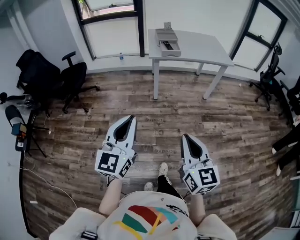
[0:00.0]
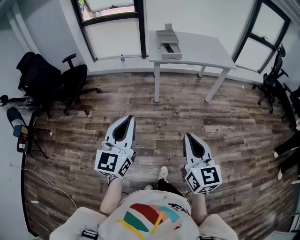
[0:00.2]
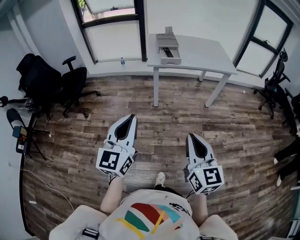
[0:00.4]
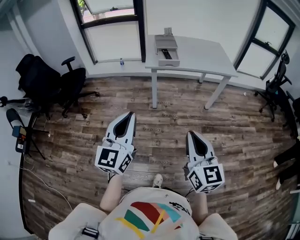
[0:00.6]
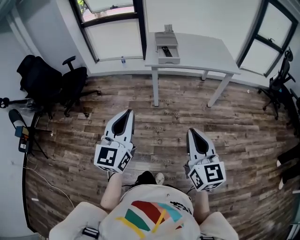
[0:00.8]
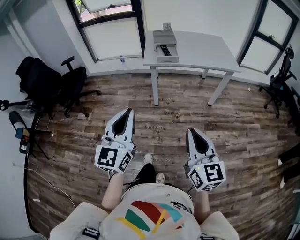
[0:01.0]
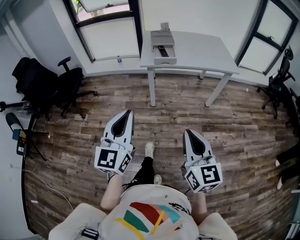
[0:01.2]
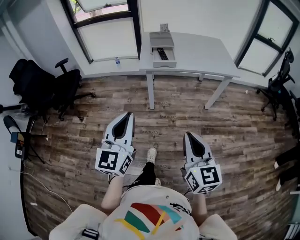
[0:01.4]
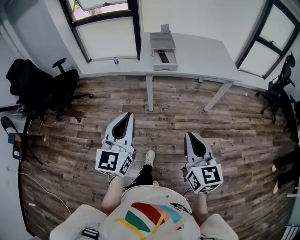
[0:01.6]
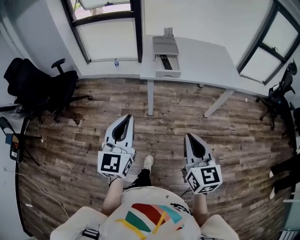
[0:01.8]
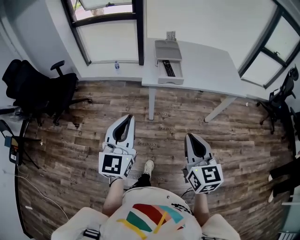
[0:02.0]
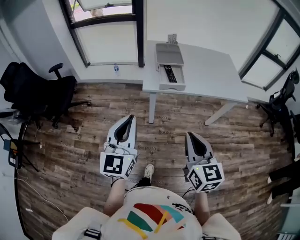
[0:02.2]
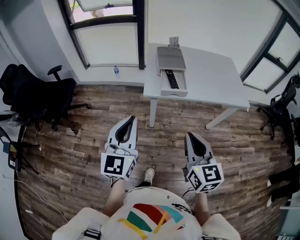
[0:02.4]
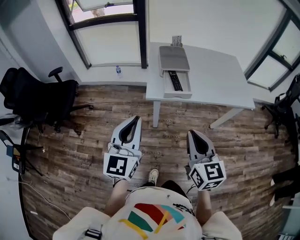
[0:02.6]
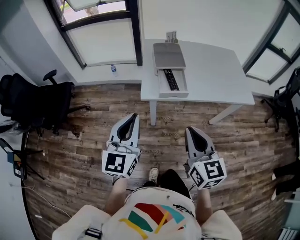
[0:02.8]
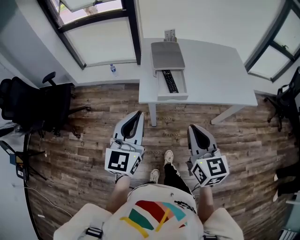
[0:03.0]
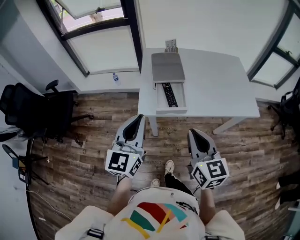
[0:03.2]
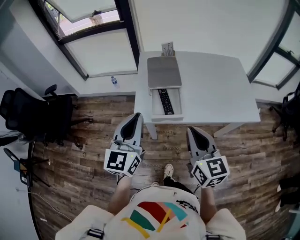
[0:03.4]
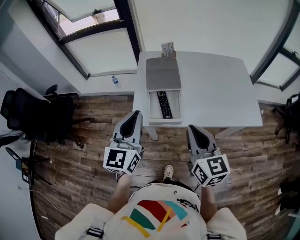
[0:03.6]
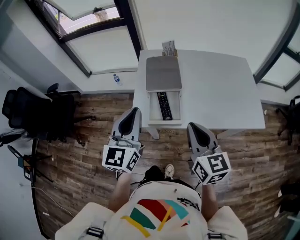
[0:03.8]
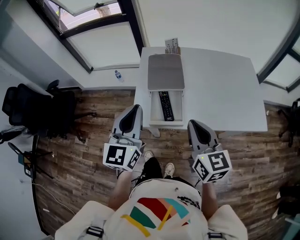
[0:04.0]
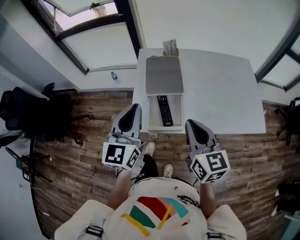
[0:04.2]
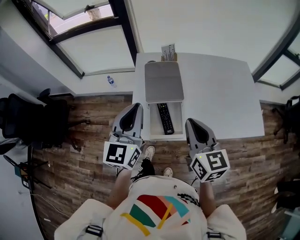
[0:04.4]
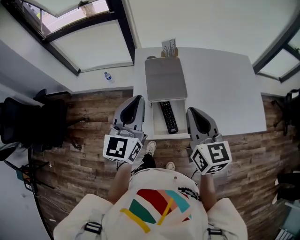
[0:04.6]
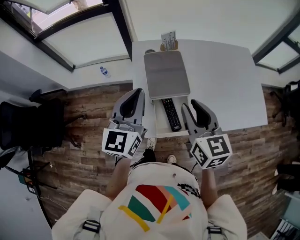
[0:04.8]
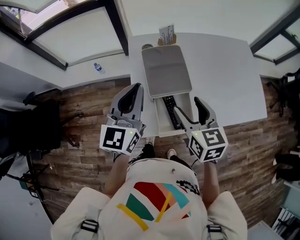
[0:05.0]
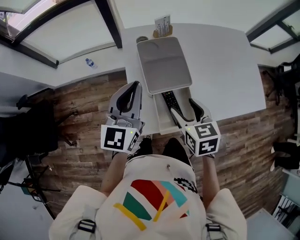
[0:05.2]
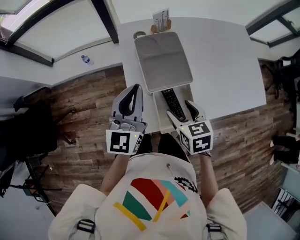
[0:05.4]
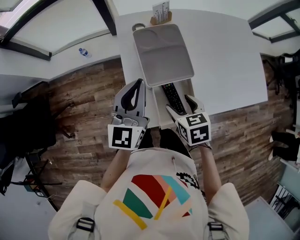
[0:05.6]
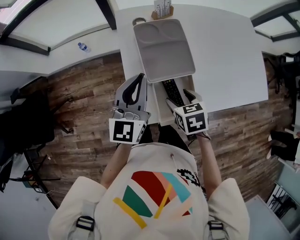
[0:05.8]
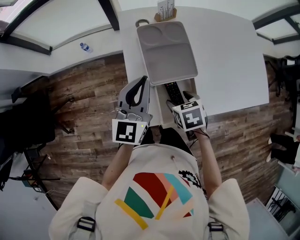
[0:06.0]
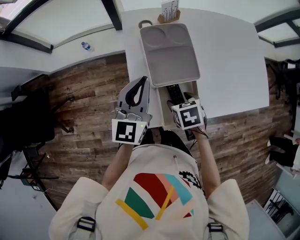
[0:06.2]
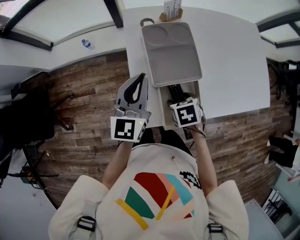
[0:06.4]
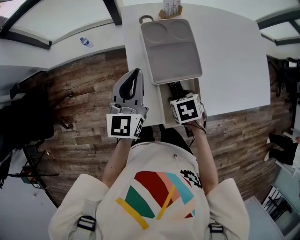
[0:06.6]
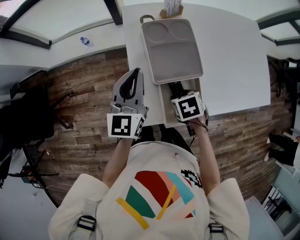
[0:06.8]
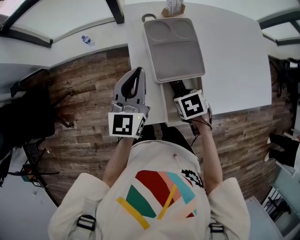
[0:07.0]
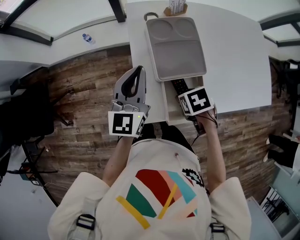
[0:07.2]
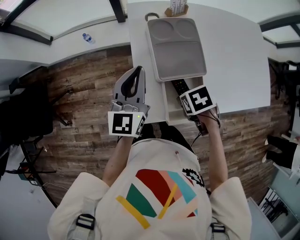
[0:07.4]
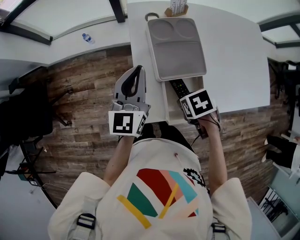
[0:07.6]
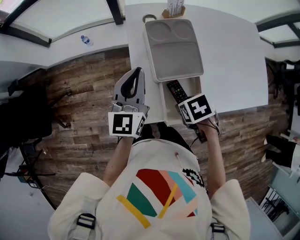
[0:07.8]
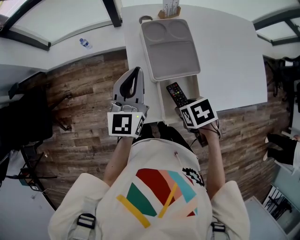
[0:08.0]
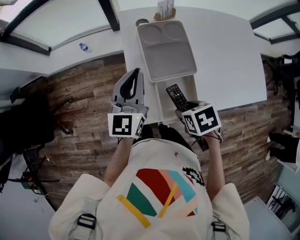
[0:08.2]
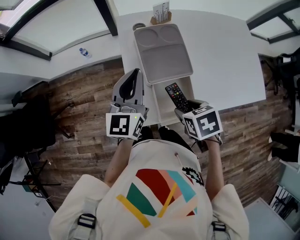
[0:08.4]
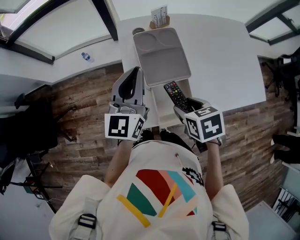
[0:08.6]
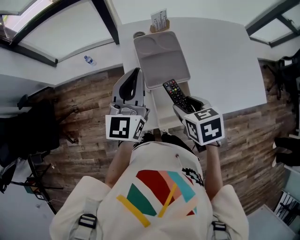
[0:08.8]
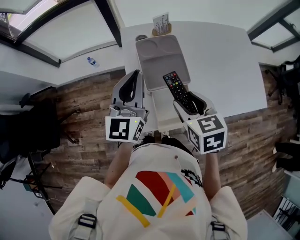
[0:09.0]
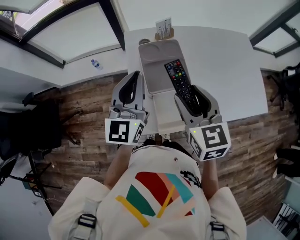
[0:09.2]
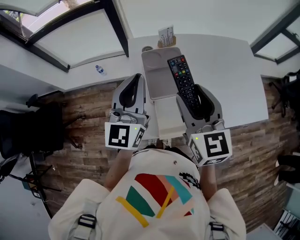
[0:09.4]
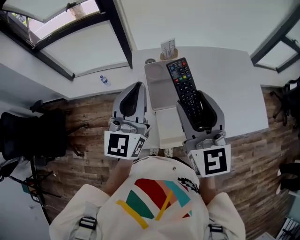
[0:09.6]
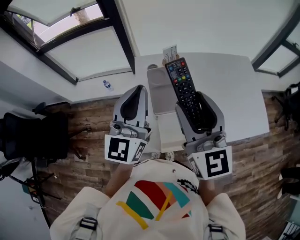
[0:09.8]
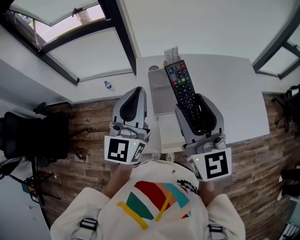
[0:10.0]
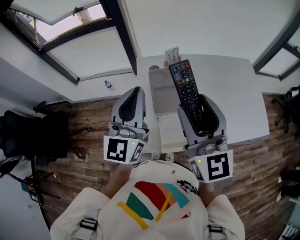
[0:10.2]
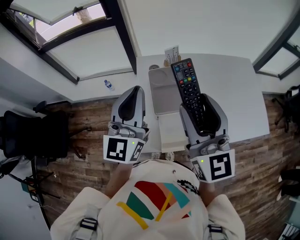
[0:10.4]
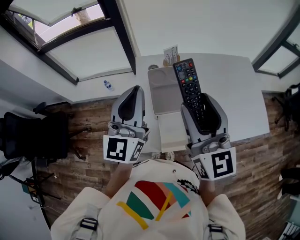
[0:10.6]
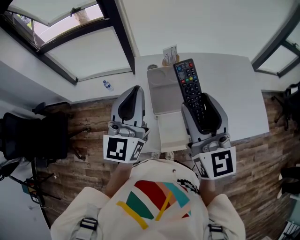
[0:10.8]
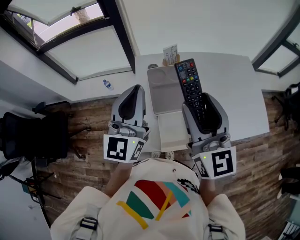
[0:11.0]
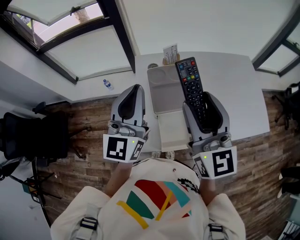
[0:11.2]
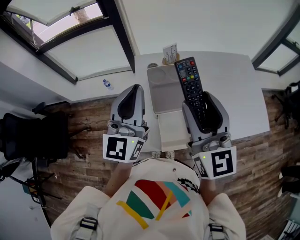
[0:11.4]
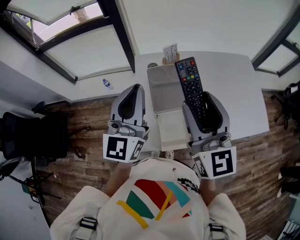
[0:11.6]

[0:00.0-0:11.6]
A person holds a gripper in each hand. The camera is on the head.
0:00.0 to 0:01.4: Both grippers move forward and to the right, some 25 cm.
0:01.4 to 0:02.8: Both grippers travel together forward, roughly 30 cm.
0:02.8 to 0:04.4: The grippers both shift forward by about 30 cm.
0:04.4 to 0:05.8: The left gripper shifts approximately 15 cm forward and downward, while the right gripper shifts about 20 cm downward, tilts its fingers some 50 degrees downward, and opens.
0:05.8 to 0:07.2: The left gripper ends up approximately 5 cm from where it was; the right gripper rotates about 20 degrees.
0:07.2 to 0:08.8: The right gripper moves upward, some 10 cm, and turns by some 30 degrees. The left gripper goes approximately 10 cm upward.
0:08.8 to 0:10.2: The left gripper travels upward by approximately 10 cm. Meanwhile the right gripper is displaced upward by approximately 25 cm, and angles its fingers upward, by roughly 60 degrees.
0:10.2 to 0:11.6: The grippers move only a little.

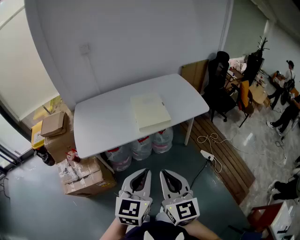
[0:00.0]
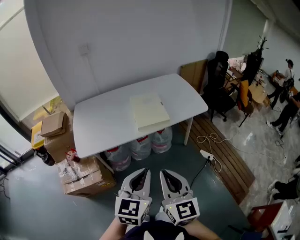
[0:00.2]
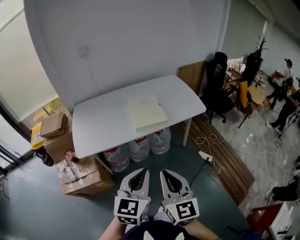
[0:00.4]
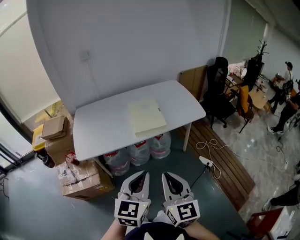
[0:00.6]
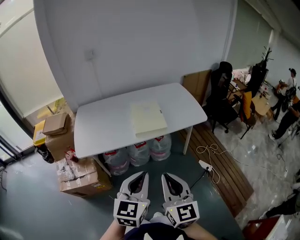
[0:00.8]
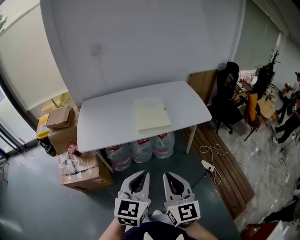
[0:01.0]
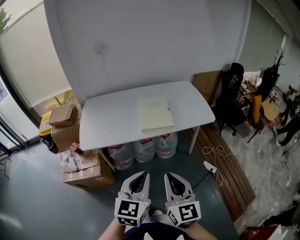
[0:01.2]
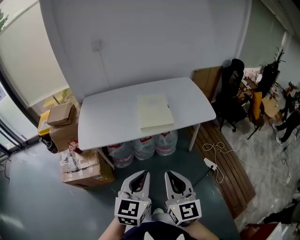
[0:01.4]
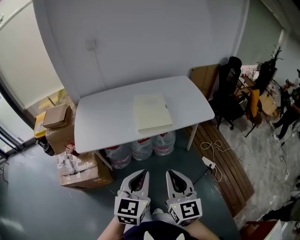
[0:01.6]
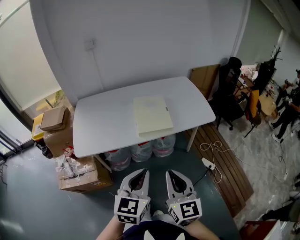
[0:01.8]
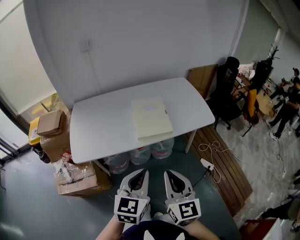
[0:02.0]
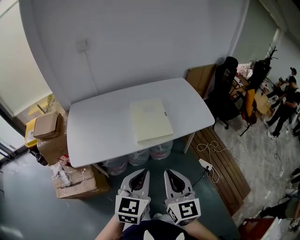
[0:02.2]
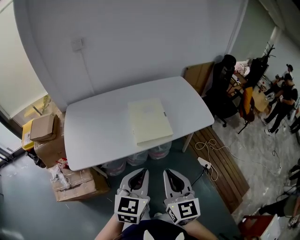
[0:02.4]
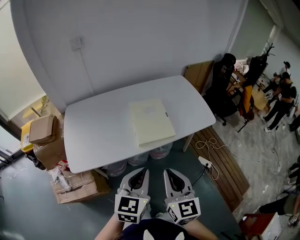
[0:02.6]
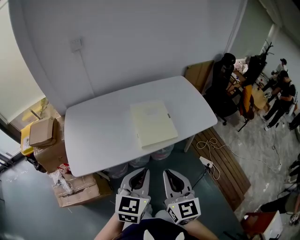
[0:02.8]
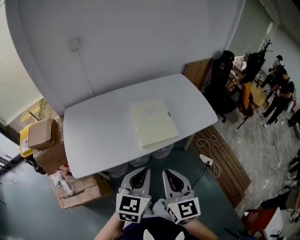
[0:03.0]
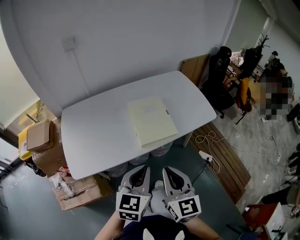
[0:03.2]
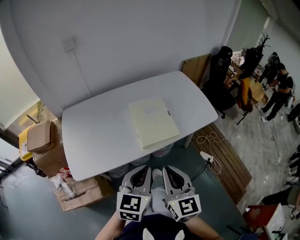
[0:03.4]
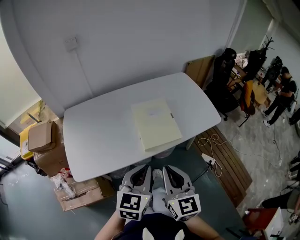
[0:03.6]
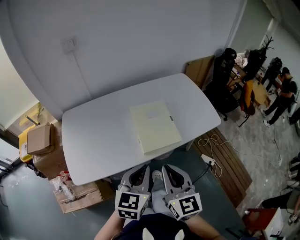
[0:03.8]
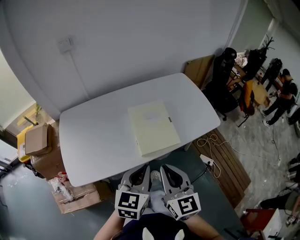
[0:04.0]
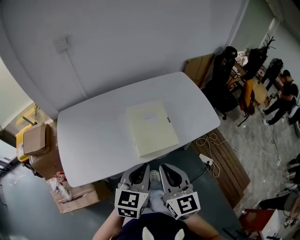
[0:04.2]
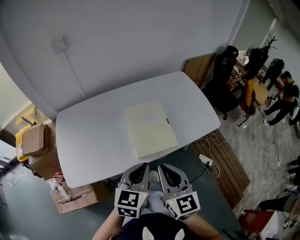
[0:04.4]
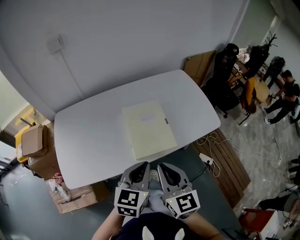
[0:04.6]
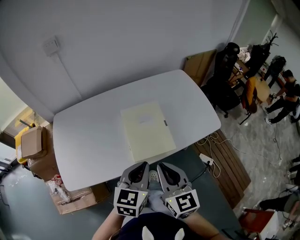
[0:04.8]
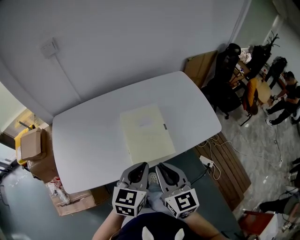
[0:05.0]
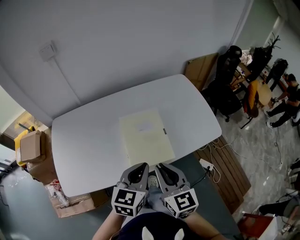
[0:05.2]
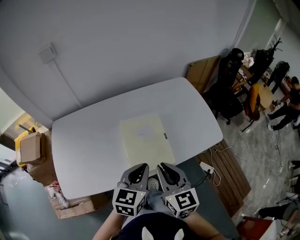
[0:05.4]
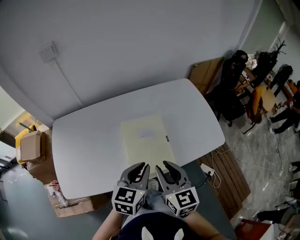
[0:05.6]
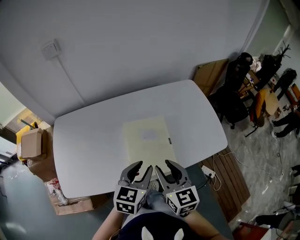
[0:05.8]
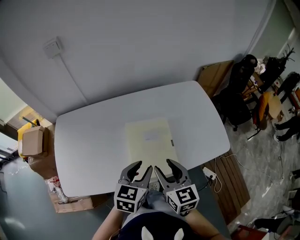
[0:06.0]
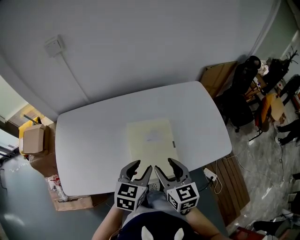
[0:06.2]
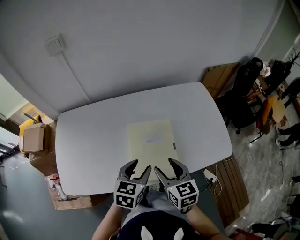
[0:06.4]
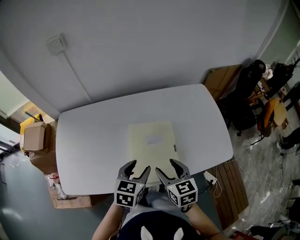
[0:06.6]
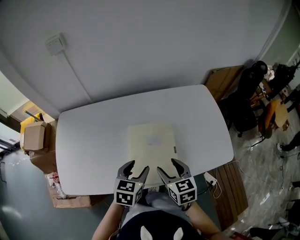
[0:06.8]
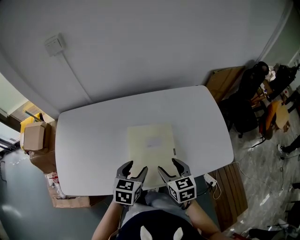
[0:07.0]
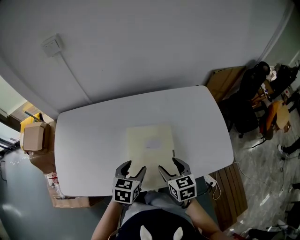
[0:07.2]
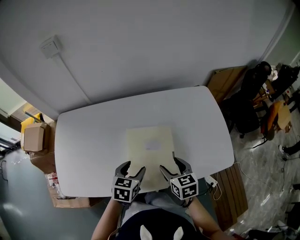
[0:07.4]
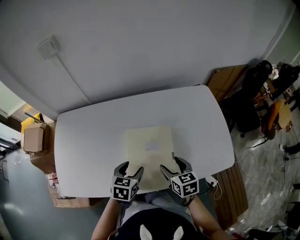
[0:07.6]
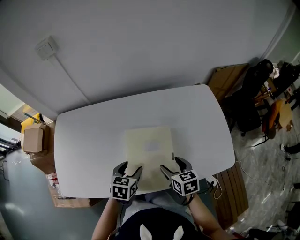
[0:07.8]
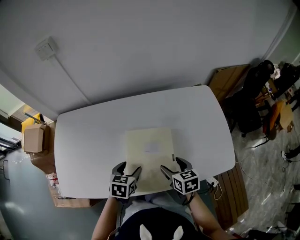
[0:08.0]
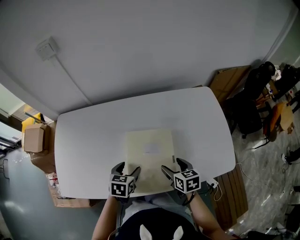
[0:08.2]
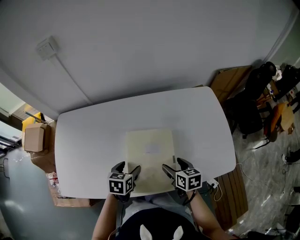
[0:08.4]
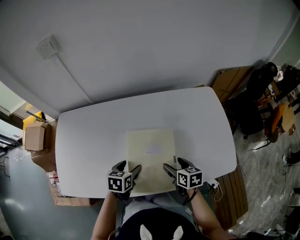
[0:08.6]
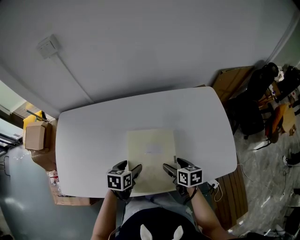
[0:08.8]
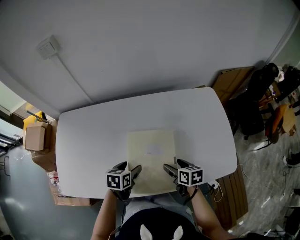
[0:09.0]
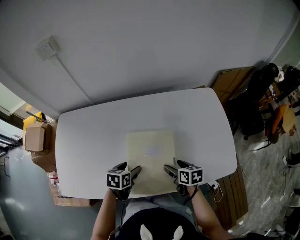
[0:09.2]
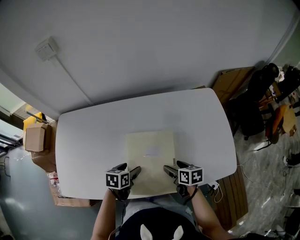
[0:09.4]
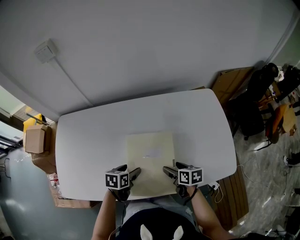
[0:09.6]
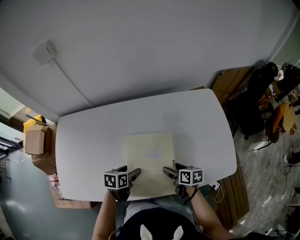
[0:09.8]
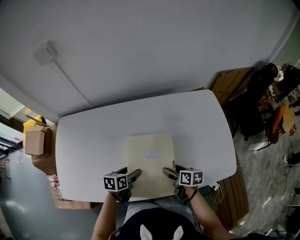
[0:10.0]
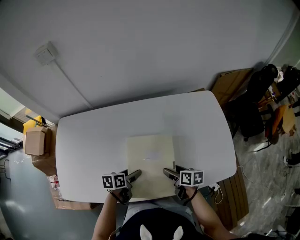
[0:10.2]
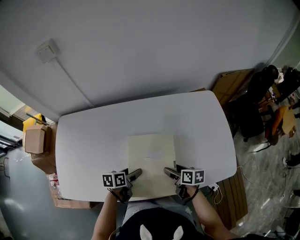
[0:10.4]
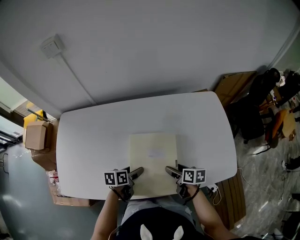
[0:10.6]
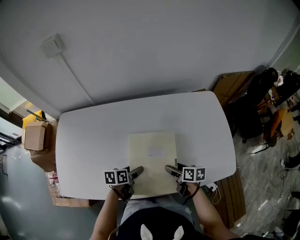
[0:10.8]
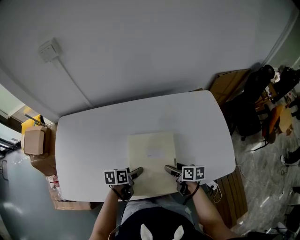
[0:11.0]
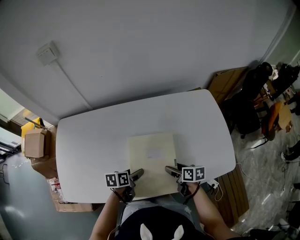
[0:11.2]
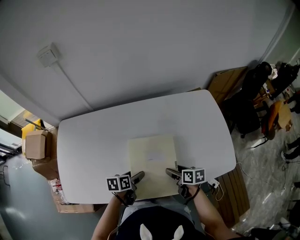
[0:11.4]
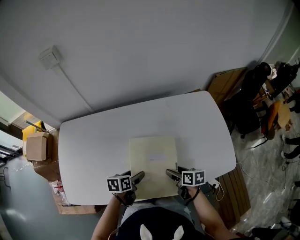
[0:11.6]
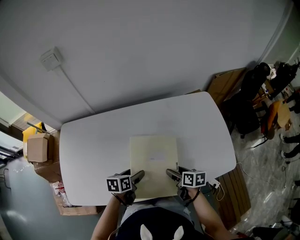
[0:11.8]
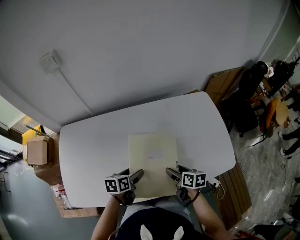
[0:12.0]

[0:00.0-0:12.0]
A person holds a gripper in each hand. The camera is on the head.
0:00.0 to 0:01.6: The right gripper shifts roughly 5 cm to the right. Meanwhile the left gripper changes place by roughly 5 cm.
0:01.6 to 0:03.0: The grippers both shift forward and to the left by some 15 cm.
0:03.0 to 0:04.4: Both grippers move forward, roughly 10 cm.
0:04.4 to 0:06.0: The left gripper shifts about 15 cm forward, and opens its fingers. Meanwhile the right gripper is displaced forward and downward by approximately 15 cm, and opens its fingers.
0:06.0 to 0:07.6: The right gripper goes approximately 15 cm downward, forward and to the right, and rotates about 20 degrees, while the left gripper heads downward and forward, covering roughly 15 cm, and opens its fingers.
0:07.6 to 0:09.0: The grippers both shift downward by about 5 cm. The right gripper changes its angle by about 20 degrees.
0:09.0 to 0:10.4: The left gripper swivels some 20 degrees.
0:10.4 to 0:12.0: Both grippers move upward, roughly 5 cm.
